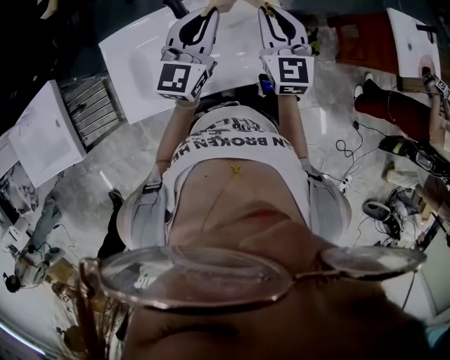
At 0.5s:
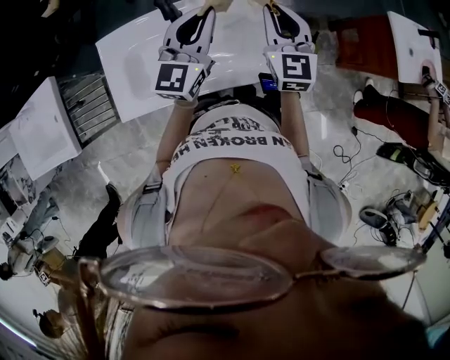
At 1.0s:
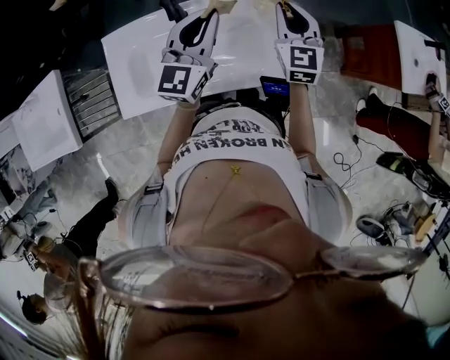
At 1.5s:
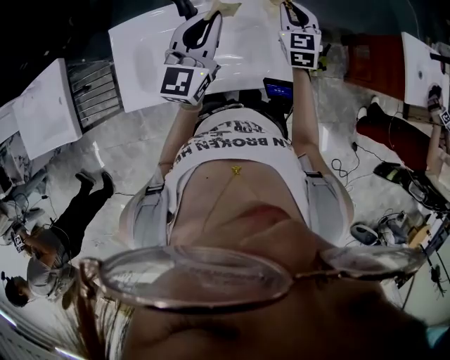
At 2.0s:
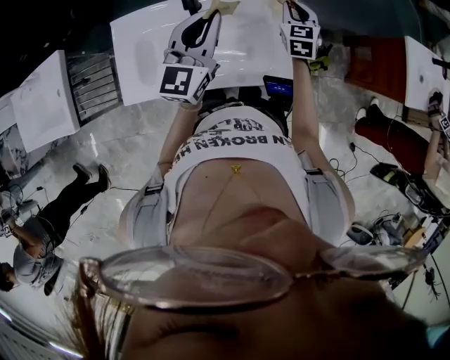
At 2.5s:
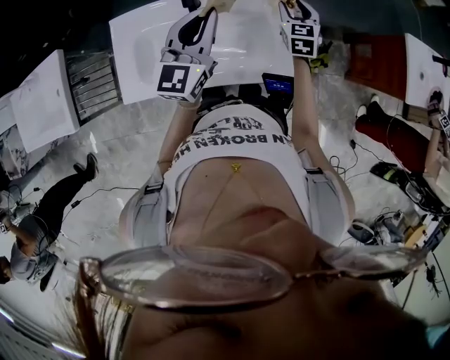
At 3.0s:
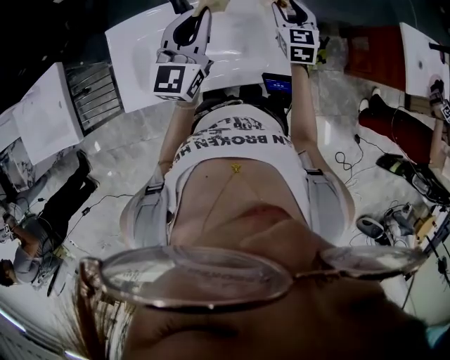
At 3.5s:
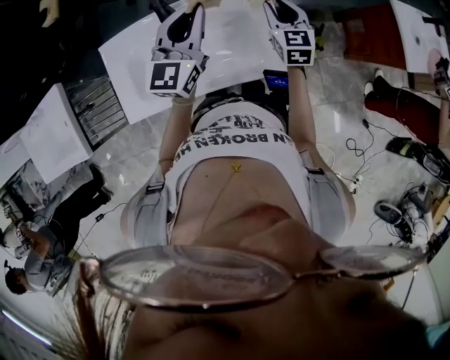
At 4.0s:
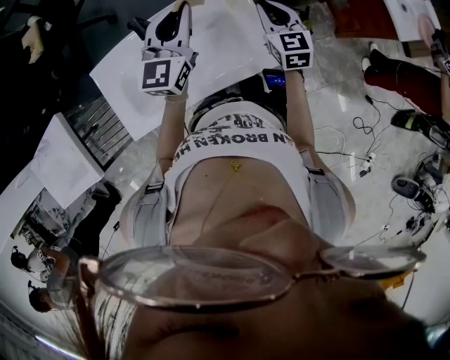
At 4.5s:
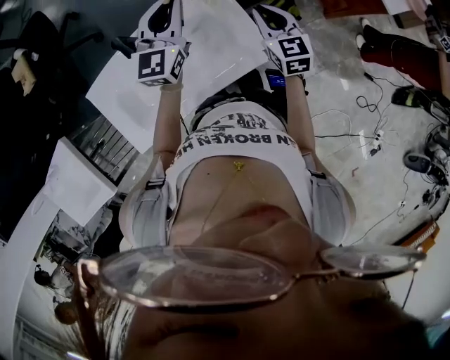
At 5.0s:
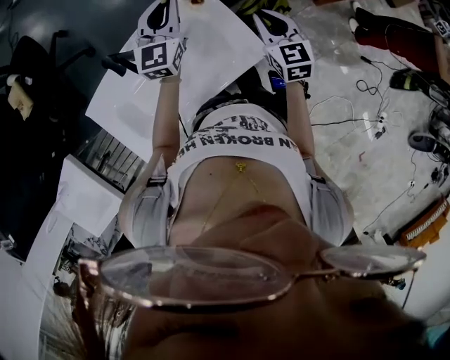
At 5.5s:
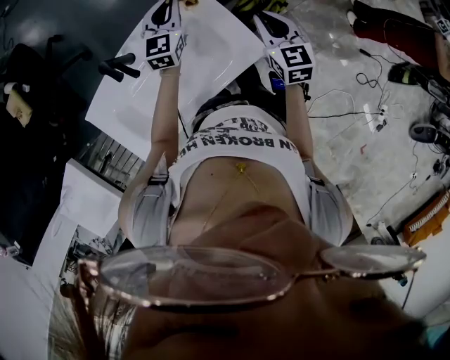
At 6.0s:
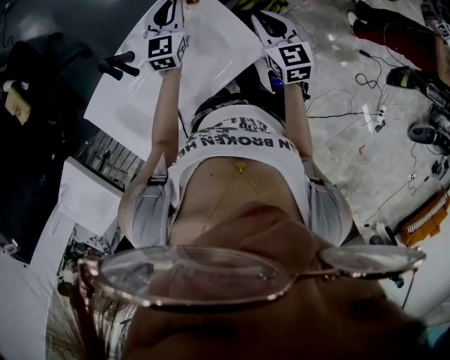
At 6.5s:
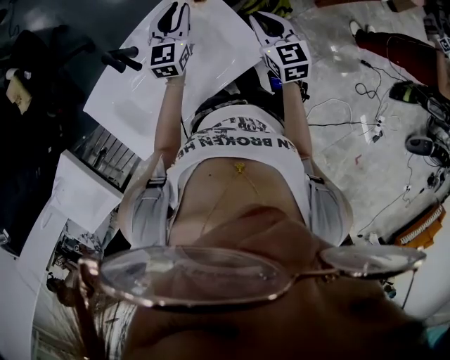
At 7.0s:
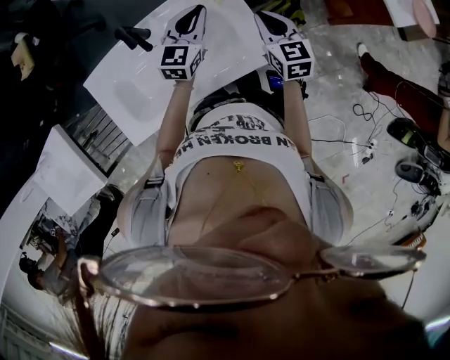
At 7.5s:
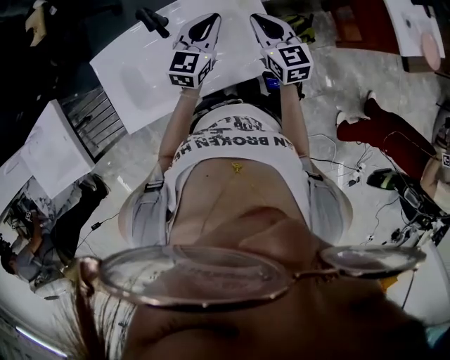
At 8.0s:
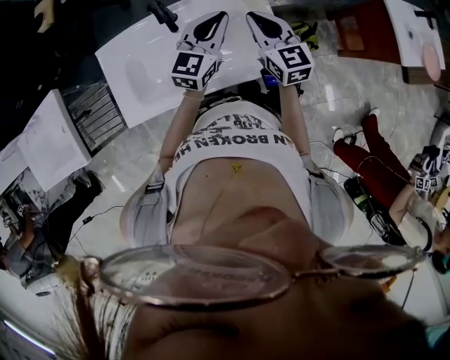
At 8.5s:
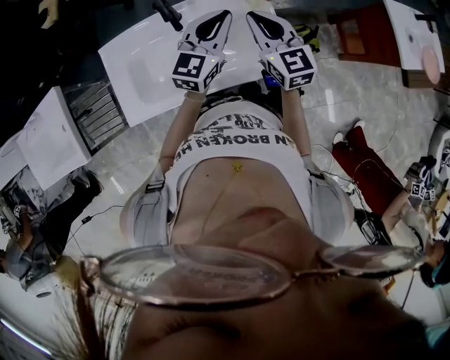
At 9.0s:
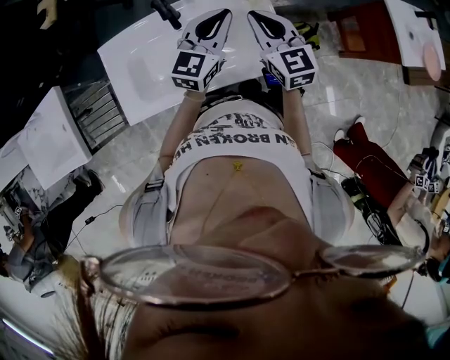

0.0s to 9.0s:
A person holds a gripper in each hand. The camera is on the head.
0.0s to 2.0s: The right gripper goes some 20 cm downward, forward and to the right.
2.0s to 4.5s: The right gripper goes approximately 15 cm to the right and backward, and opens, then closes once more. Meanwhile the left gripper shifts approximately 20 cm forward and to the right.
4.5s to 7.0s: The left gripper heads downward, covering some 10 cm; the right gripper travels to the right and back again, roughly 5 cm each way.
7.0s to 9.0s: The right gripper goes about 15 cm to the left and upward, and rotates approximately 20 degrees; the left gripper is displaced upward, backward and to the left by roughly 15 cm.

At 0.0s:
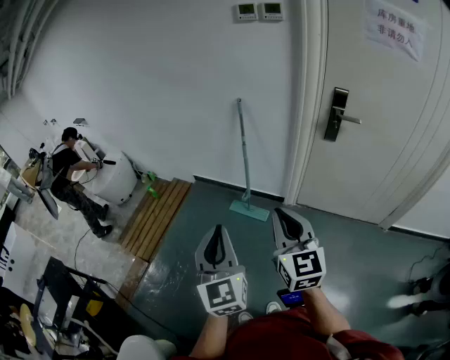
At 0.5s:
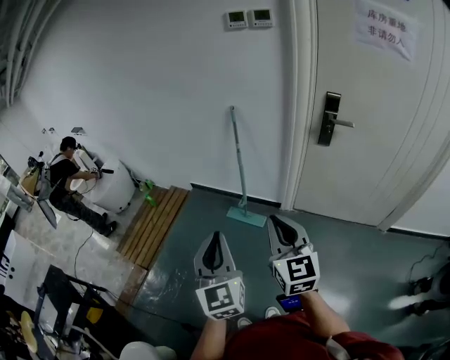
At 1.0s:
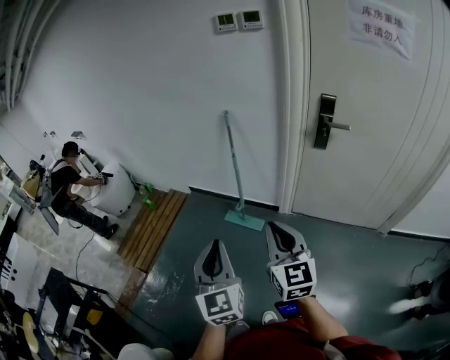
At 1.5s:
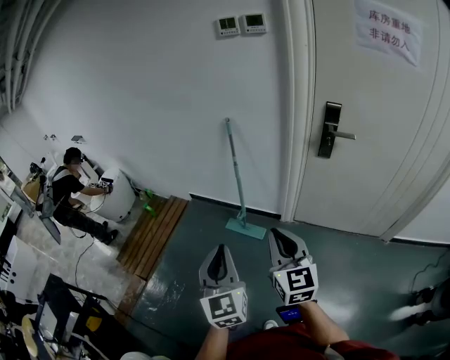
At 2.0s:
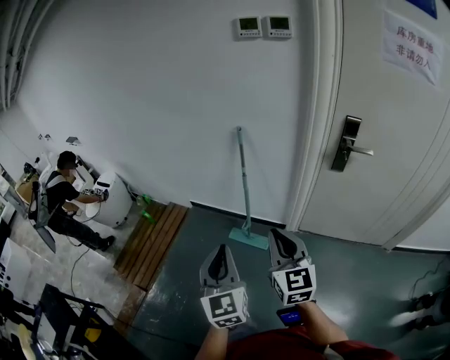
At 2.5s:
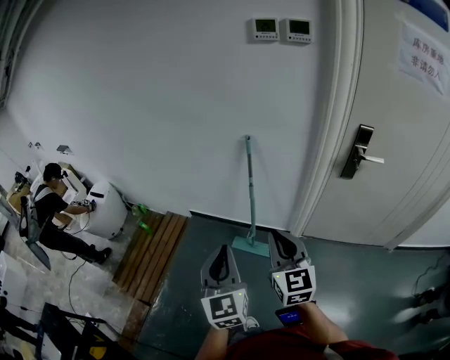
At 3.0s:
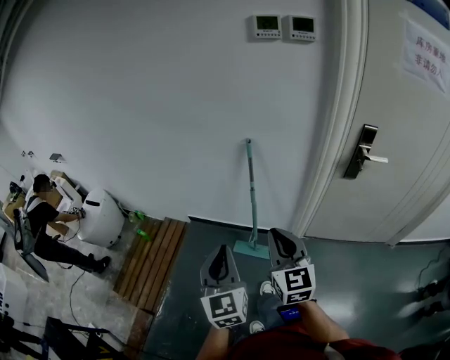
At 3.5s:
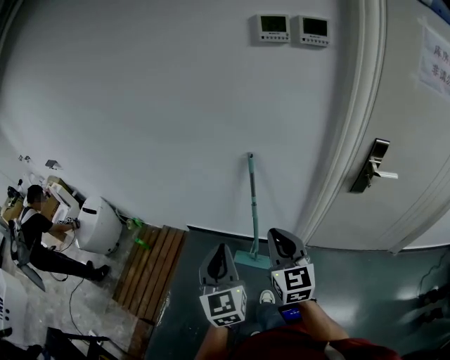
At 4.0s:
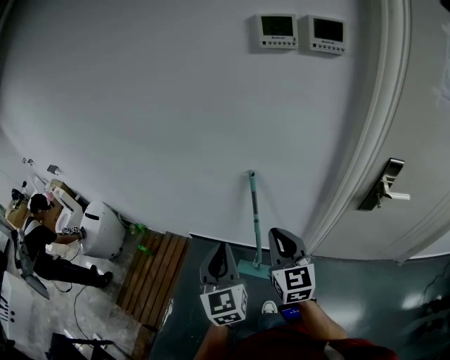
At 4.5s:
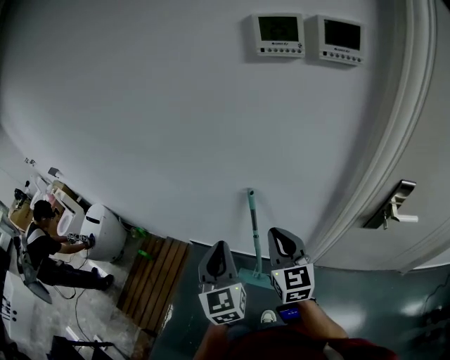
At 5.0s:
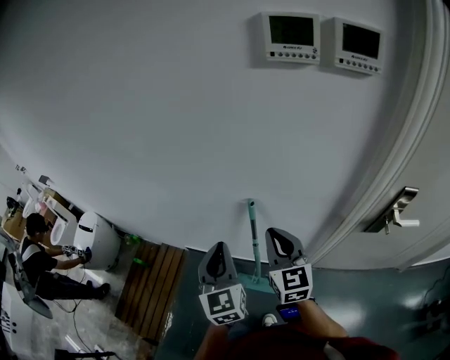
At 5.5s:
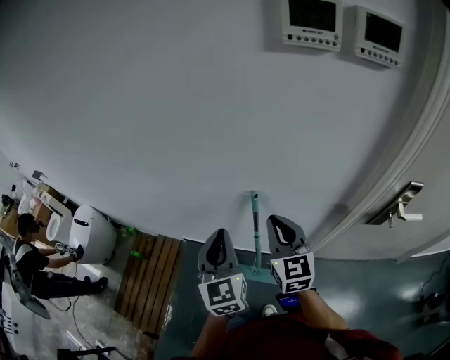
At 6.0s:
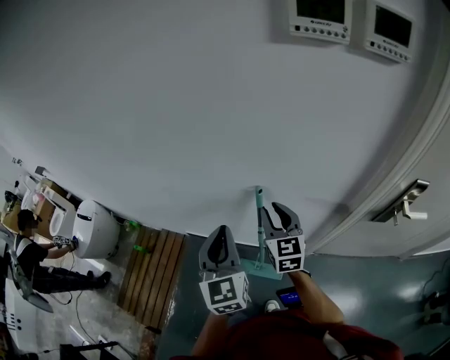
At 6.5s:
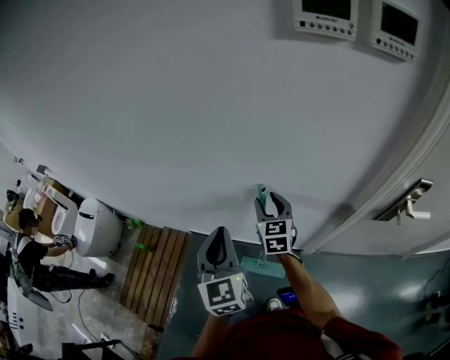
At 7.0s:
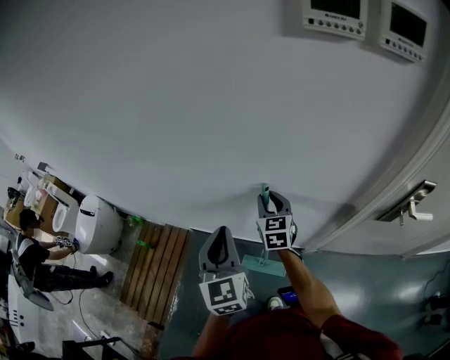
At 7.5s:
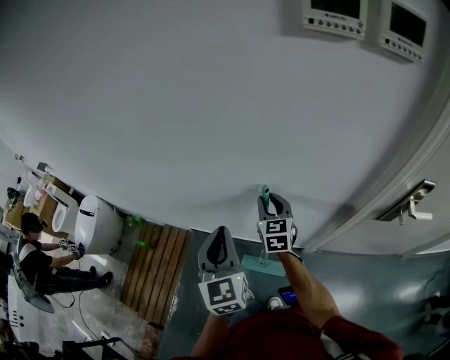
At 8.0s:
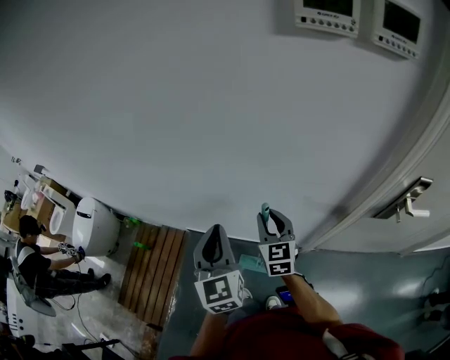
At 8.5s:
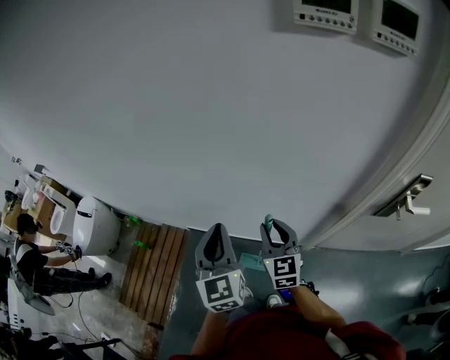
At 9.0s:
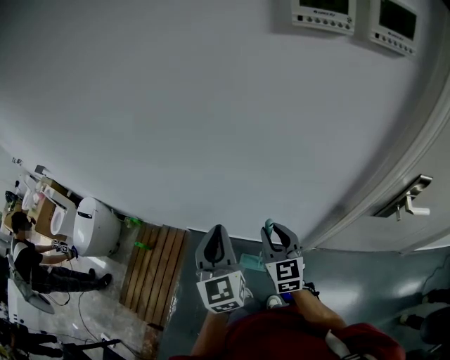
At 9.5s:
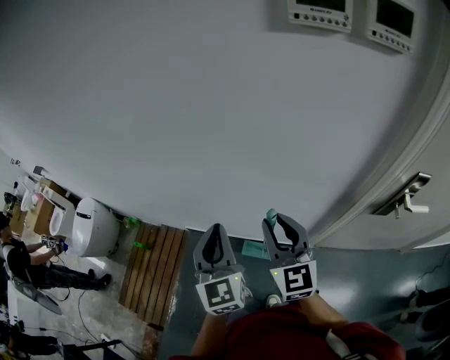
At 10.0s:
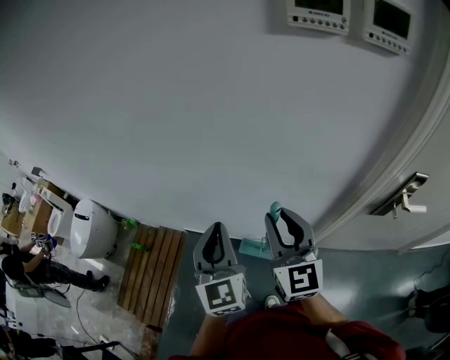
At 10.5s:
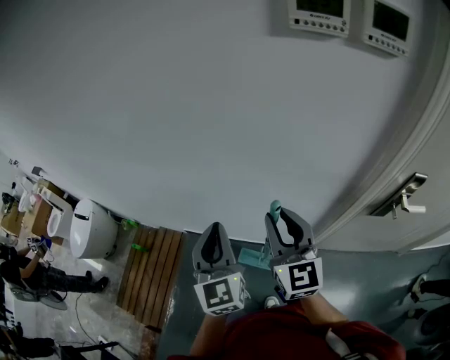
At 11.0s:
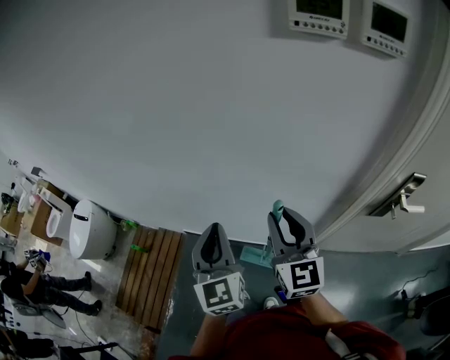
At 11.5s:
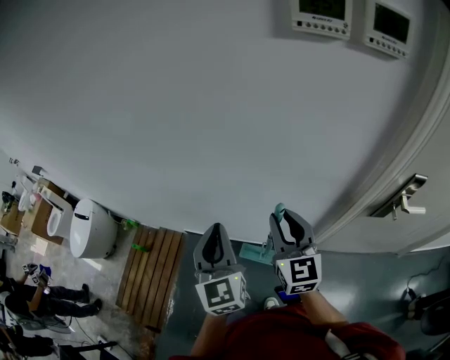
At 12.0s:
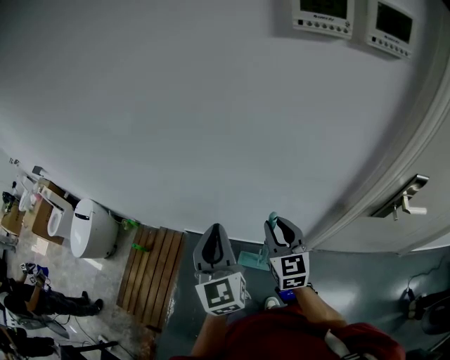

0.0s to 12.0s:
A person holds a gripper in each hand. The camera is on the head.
0.0s to 2.0s: The two grippers go roughly 15 cm forward.
2.0s to 4.0s: Both grippers travel together forward, about 35 cm.
4.0s to 6.0s: Both grippers travel together forward, roughly 20 cm.
8.0s to 10.0s: The right gripper heads upward and backward, covering about 15 cm.
10.0s to 12.0s: The right gripper is displaced downward by about 10 cm.

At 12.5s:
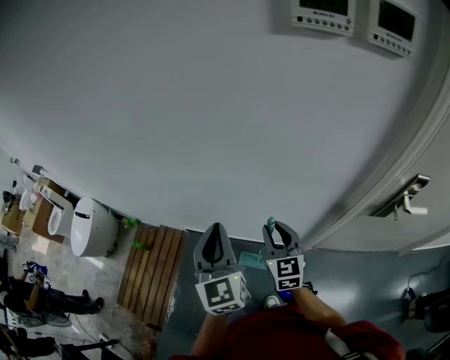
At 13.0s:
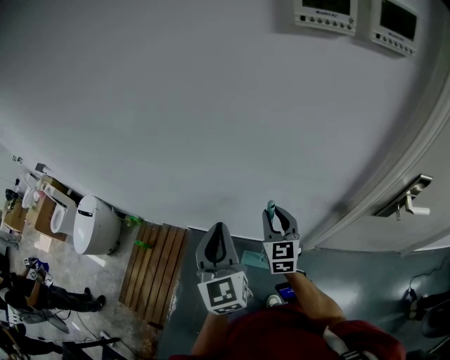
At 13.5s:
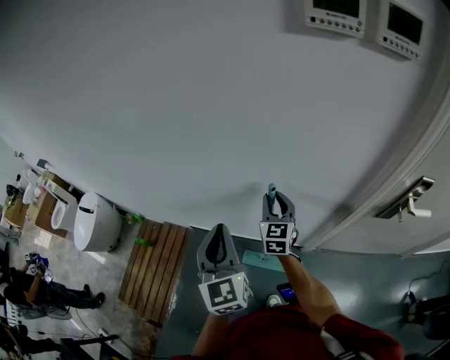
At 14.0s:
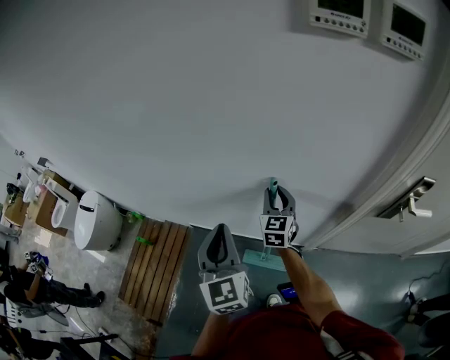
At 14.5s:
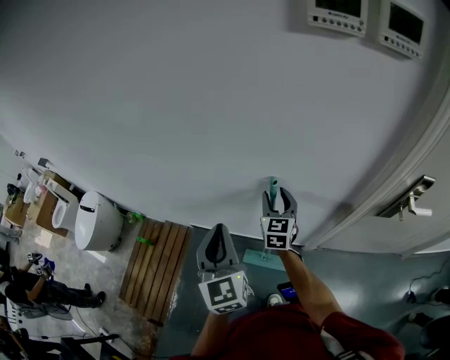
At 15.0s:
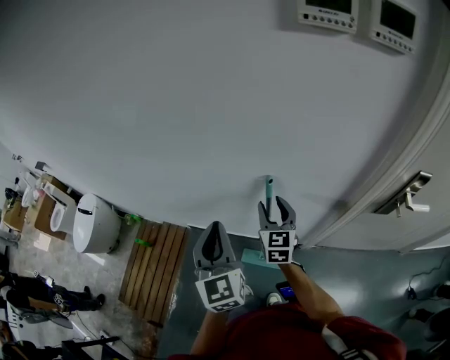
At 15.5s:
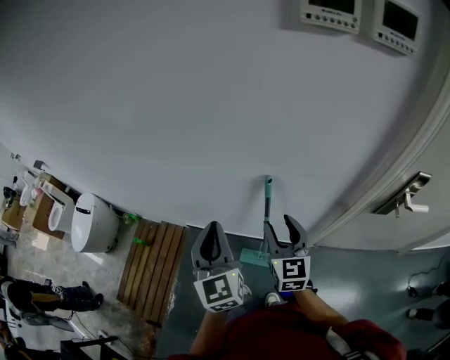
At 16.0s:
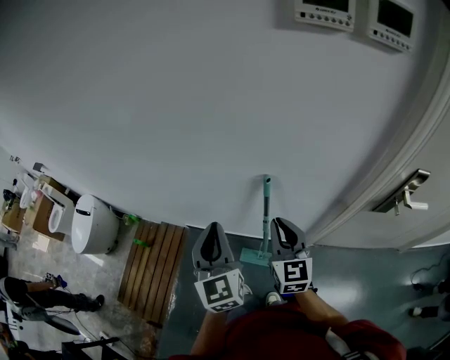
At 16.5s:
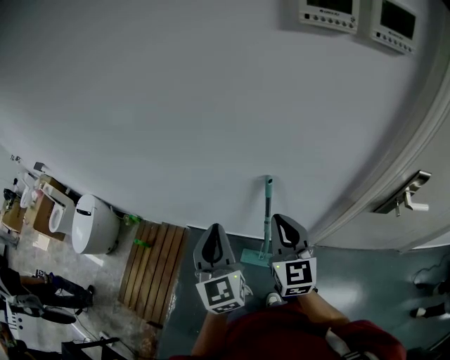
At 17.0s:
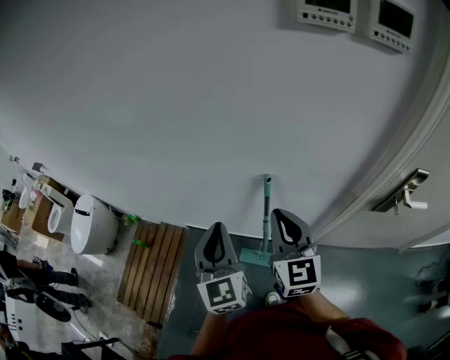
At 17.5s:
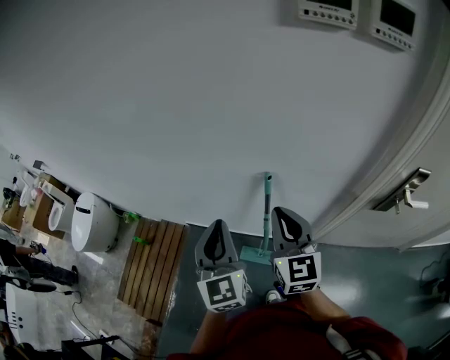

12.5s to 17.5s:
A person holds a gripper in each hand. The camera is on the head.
12.5s to 15.0s: The right gripper moves forward, about 5 cm, and opens its fingers.
15.0s to 17.5s: The right gripper heads upward and backward, covering approximately 15 cm, and closes.

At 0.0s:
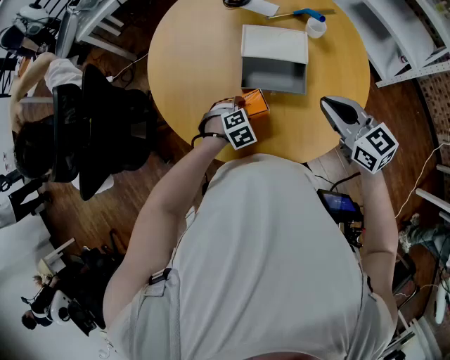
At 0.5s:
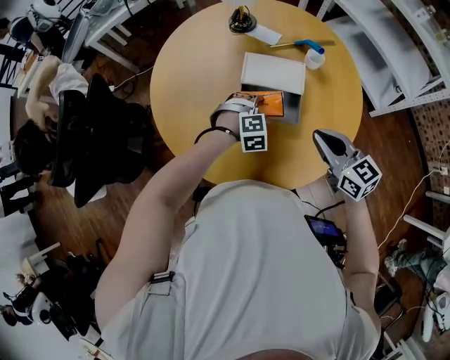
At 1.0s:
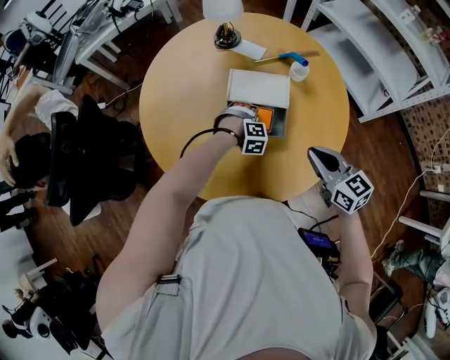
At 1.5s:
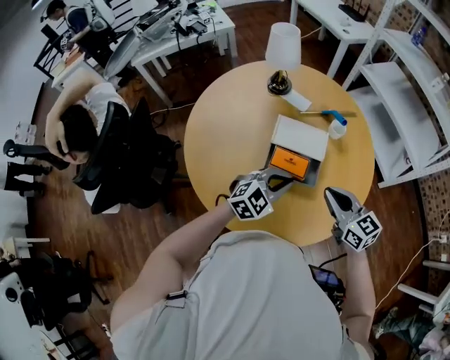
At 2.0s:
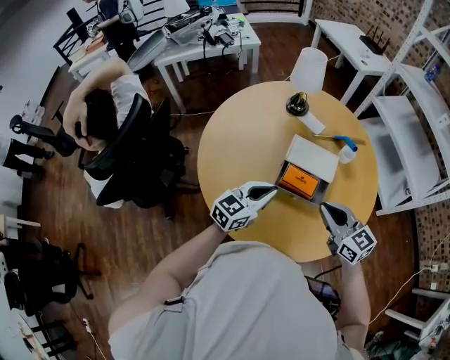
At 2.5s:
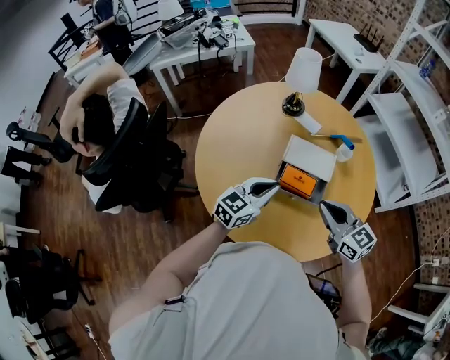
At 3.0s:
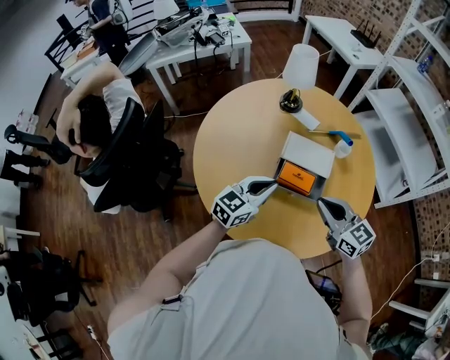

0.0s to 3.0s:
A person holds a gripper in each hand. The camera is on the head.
0.0s to 1.5s: The left gripper swings up and down, roughly 20 cm each way, with 2 reversals, points its fingers approximately 40 degrees further upward, and closes.
1.5s to 3.0s: Both grippers travel together to the left, about 10 cm. The left gripper rotates about 30 degrees.
